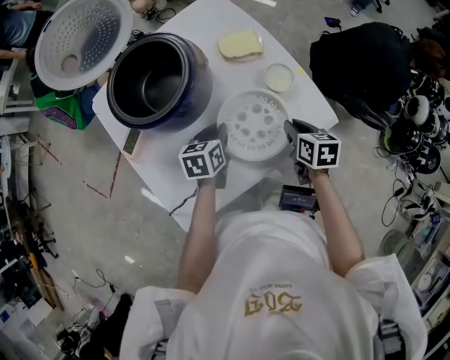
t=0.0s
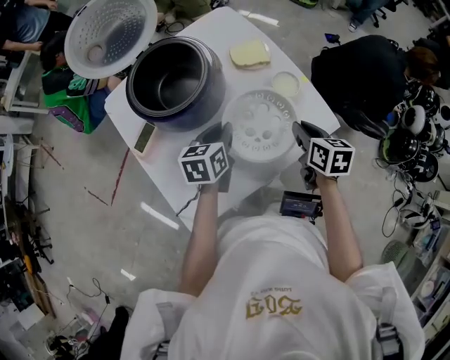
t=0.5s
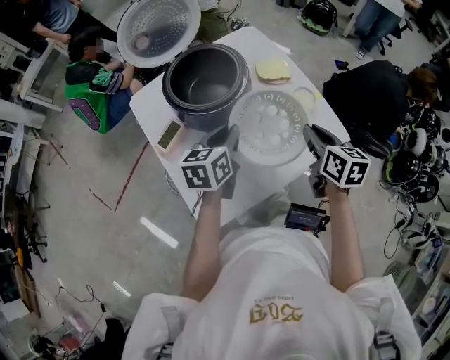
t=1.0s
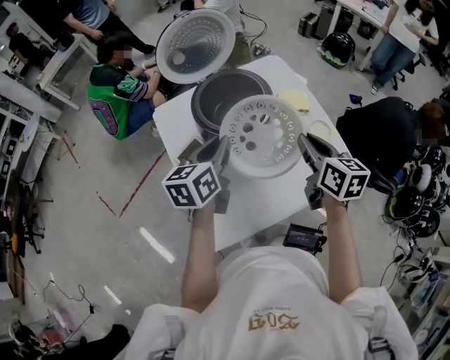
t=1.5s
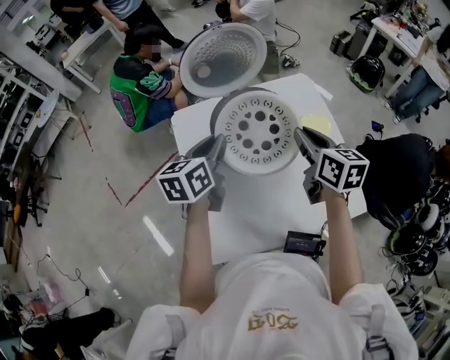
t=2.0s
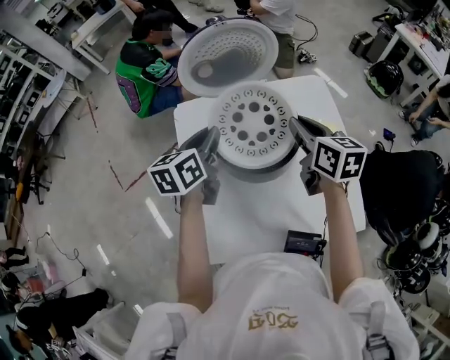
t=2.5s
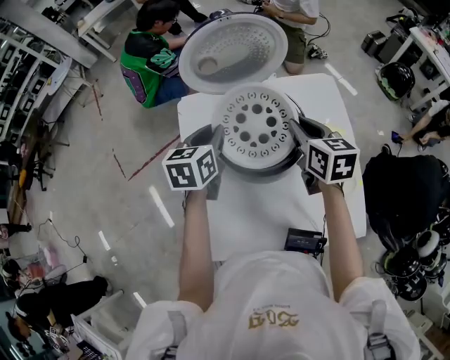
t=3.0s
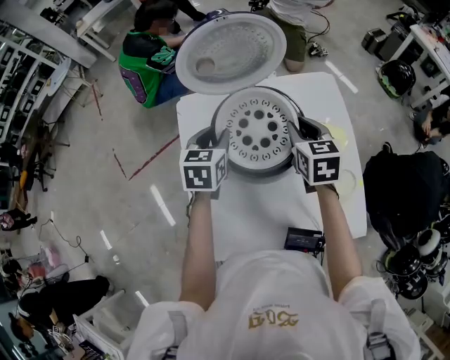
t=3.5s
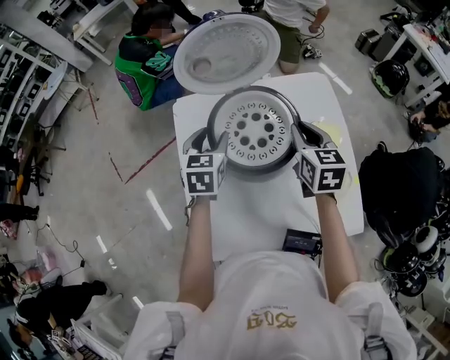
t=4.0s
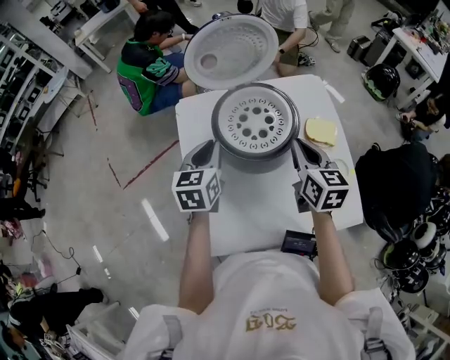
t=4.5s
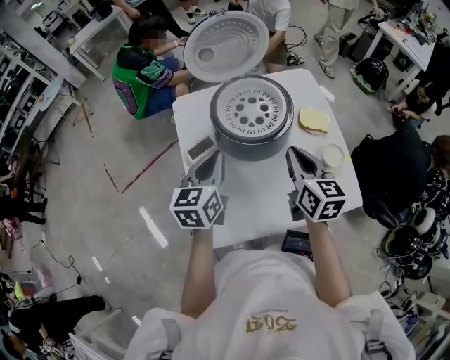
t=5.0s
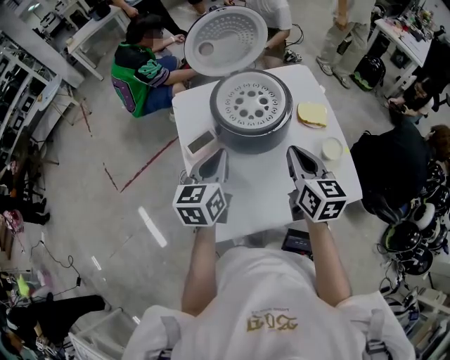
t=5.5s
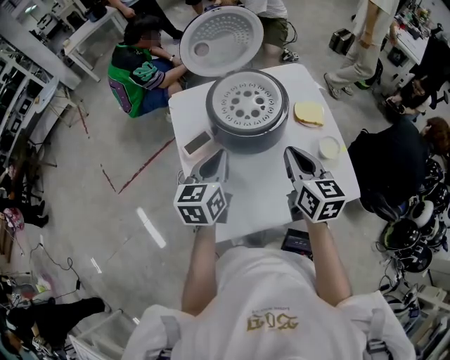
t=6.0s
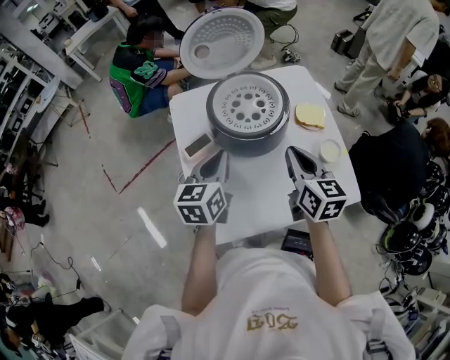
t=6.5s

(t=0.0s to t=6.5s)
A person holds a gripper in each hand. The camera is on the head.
t=0.0s - t=2.0s: The left gripper is displaced upward and to the left by about 30 cm, and rotates approximately 30 degrees. Meanwhile the right gripper heads upward, to the left and forward, covering about 35 cm, and changes its angle by about 30 degrees.
t=2.0s - t=4.5s: The right gripper reaches roughly 10 cm forward, then returns; the left gripper is displaced downward by approximately 5 cm, reaches roughly 5 cm forward, then returns, turns by approximately 20 degrees, and opens and closes again.
t=4.5s - t=6.5s: The grippers both shift backward by roughly 10 cm.

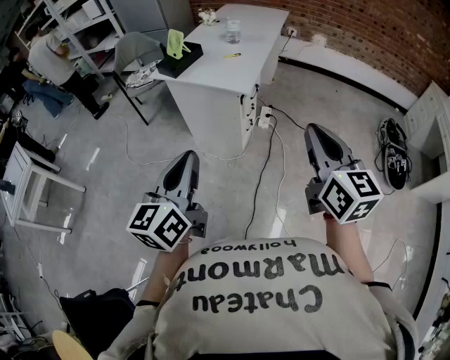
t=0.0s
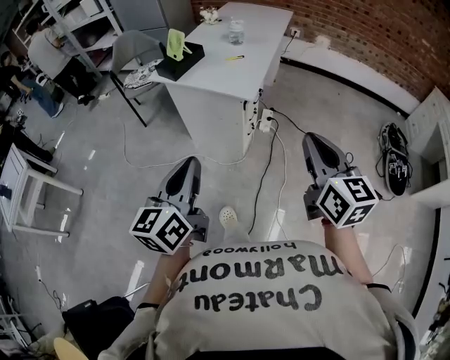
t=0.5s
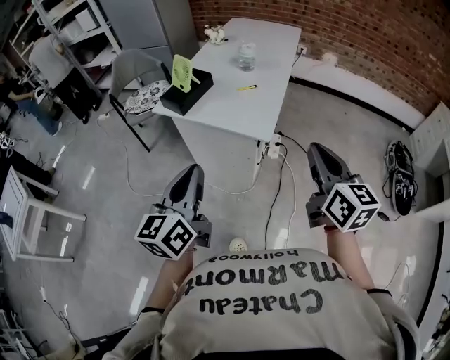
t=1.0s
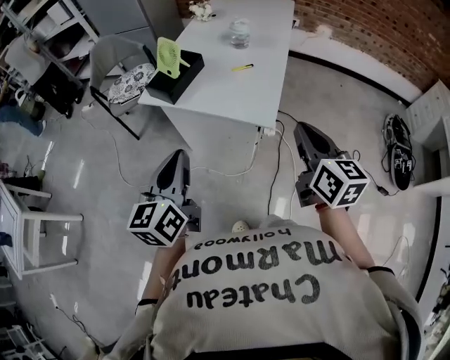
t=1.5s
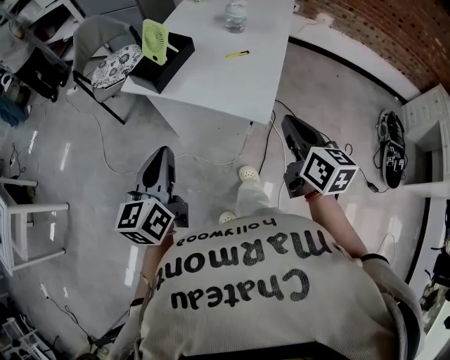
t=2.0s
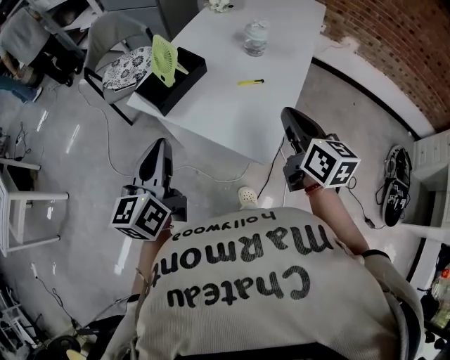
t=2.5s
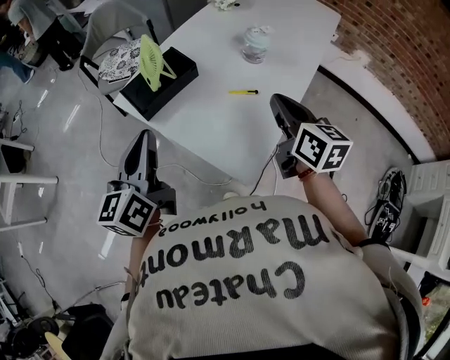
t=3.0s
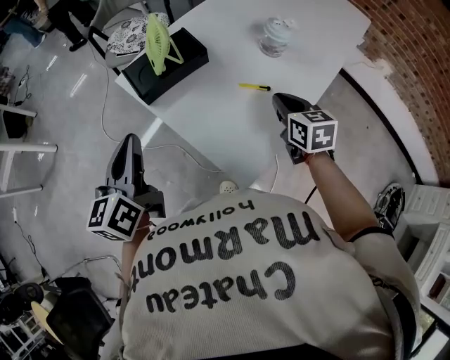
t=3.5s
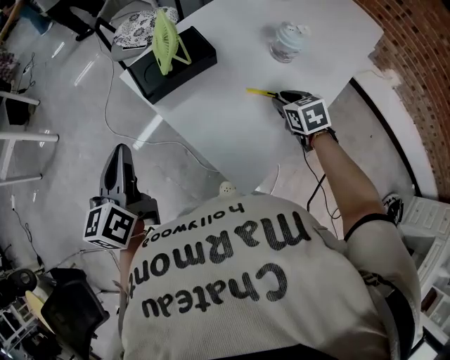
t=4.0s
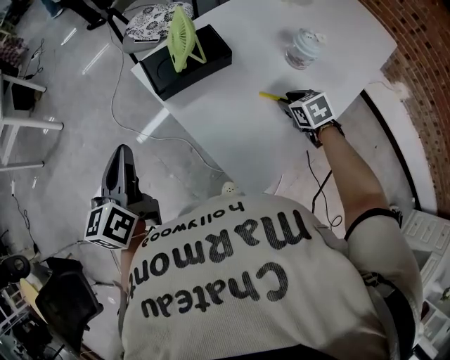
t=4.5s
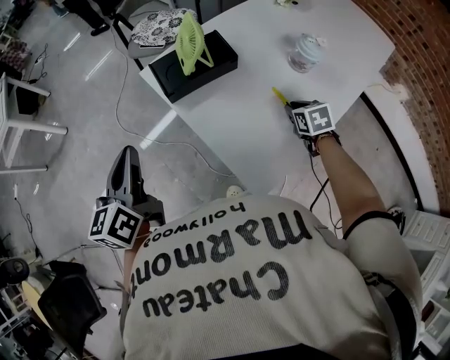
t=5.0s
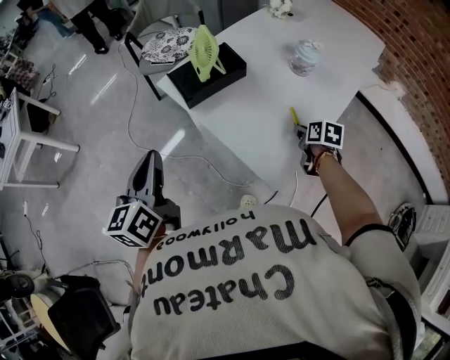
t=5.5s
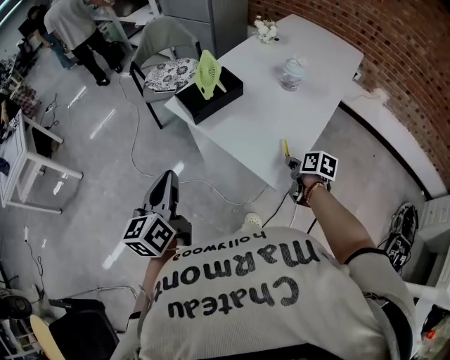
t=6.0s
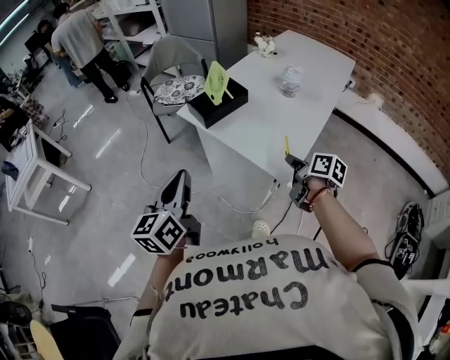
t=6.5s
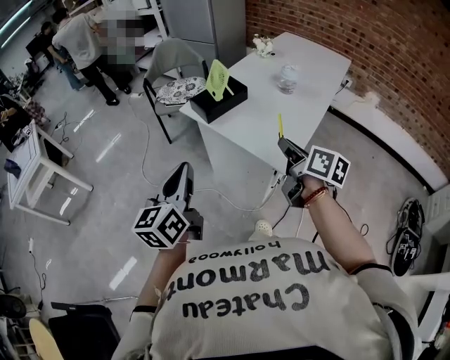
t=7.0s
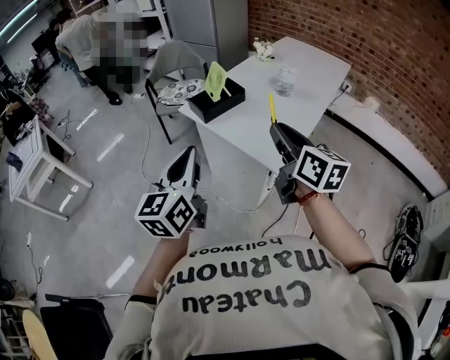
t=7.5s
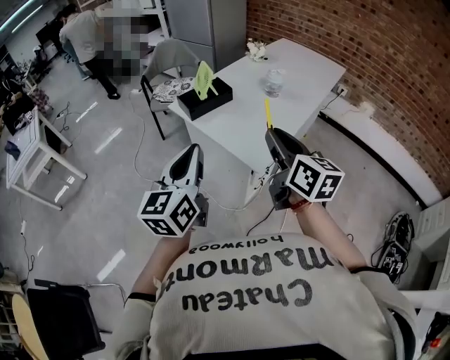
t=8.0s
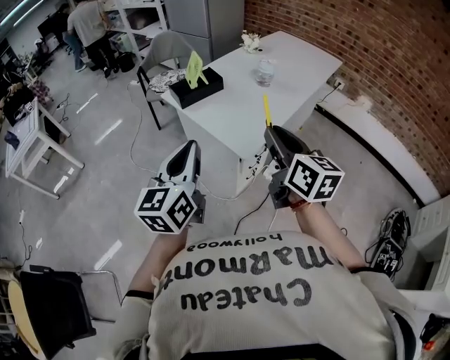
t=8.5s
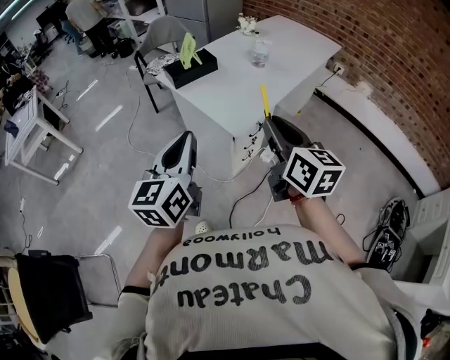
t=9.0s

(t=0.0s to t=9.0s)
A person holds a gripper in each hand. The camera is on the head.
t=0.0s - t=2.0s: The two grippers go approximately 35 cm forward. The right gripper turns by some 20 degrees.
t=2.0s - t=4.5s: The right gripper ends up about 40 cm from where it was, points its fingers roughly 40 degrees further downward, and opens up; the left gripper moves about 15 cm, and rotates approximately 40 degrees.
t=4.5s - t=7.0s: The left gripper shifts roughly 20 cm backward and upward, and rotates about 30 degrees. Meanwhile the right gripper travels backward, upward and to the left by approximately 40 cm, and tips its fingers upward by roughly 40 degrees.
t=7.0s - t=9.0s: The left gripper moves to the right and backward, roughly 25 cm. Meanwhile the right gripper goes about 20 cm backward, to the right and upward, and rotates about 30 degrees.

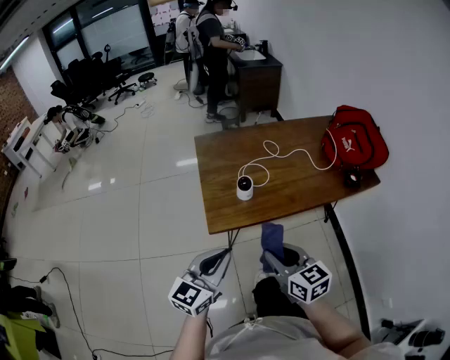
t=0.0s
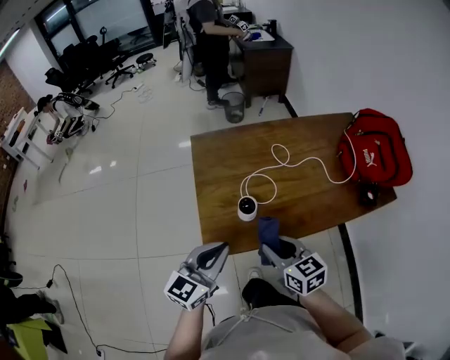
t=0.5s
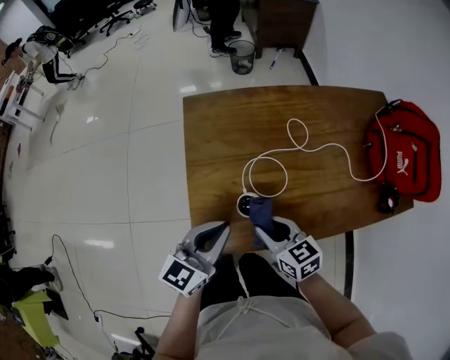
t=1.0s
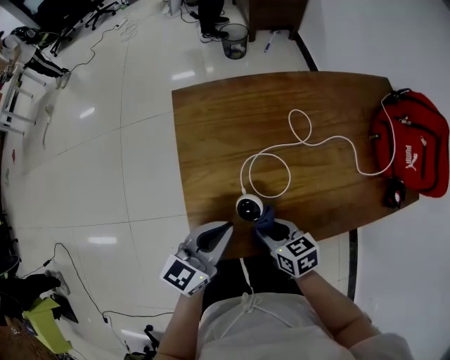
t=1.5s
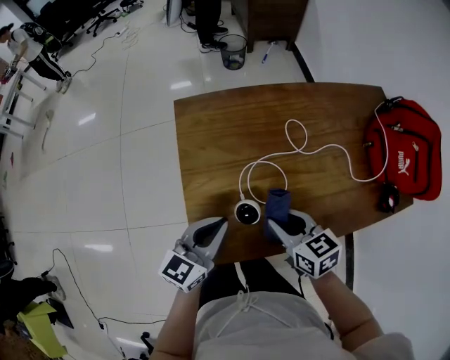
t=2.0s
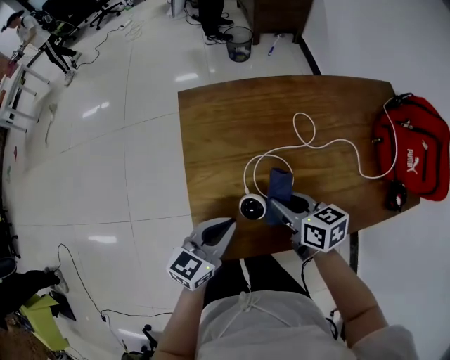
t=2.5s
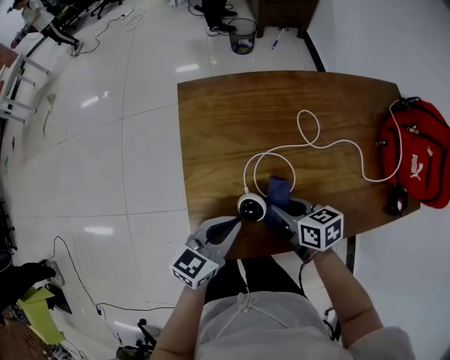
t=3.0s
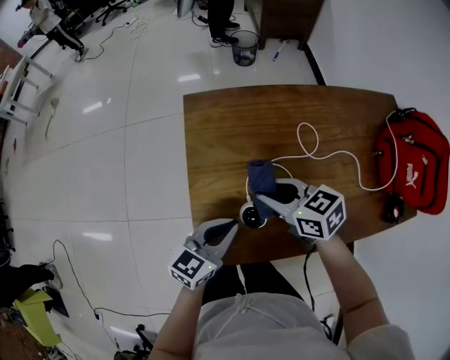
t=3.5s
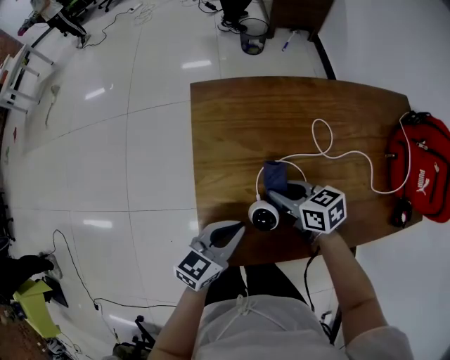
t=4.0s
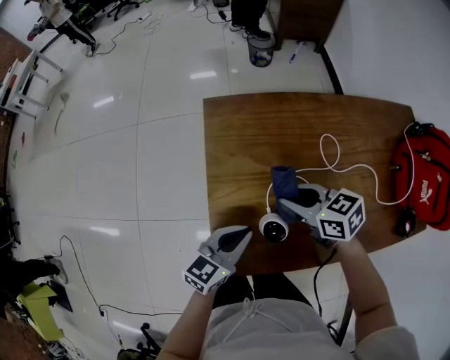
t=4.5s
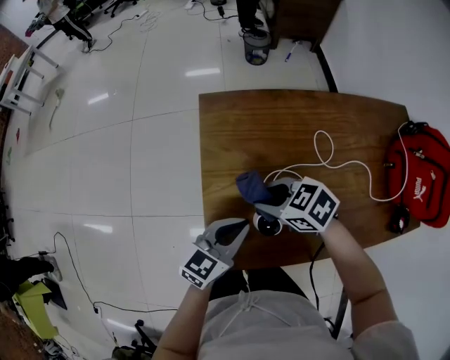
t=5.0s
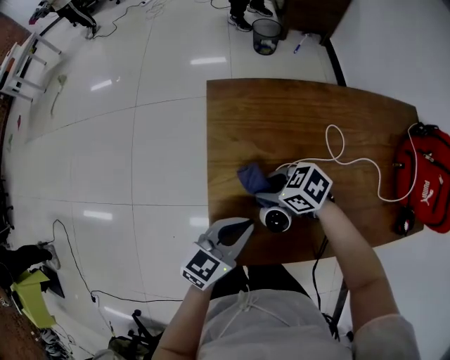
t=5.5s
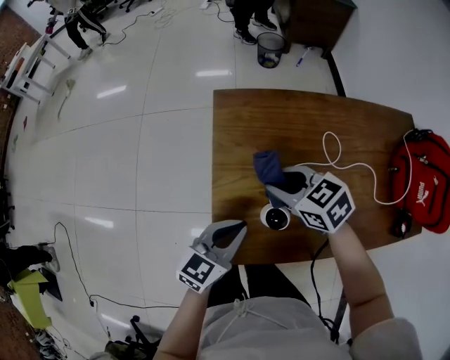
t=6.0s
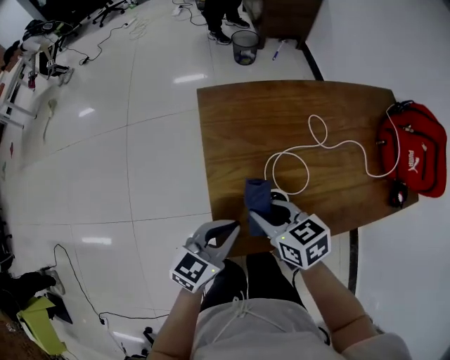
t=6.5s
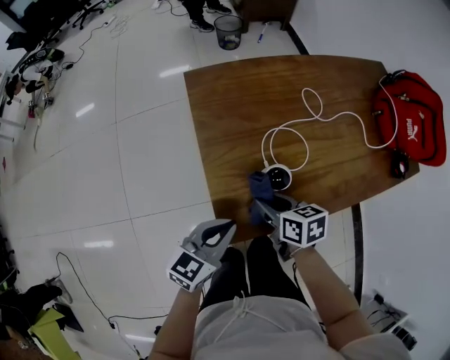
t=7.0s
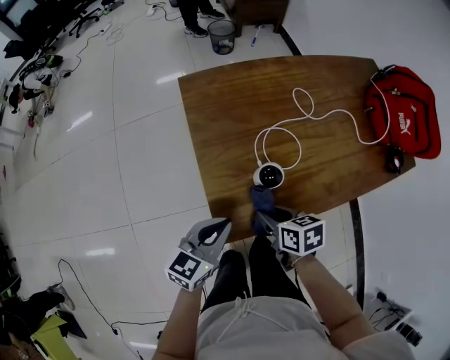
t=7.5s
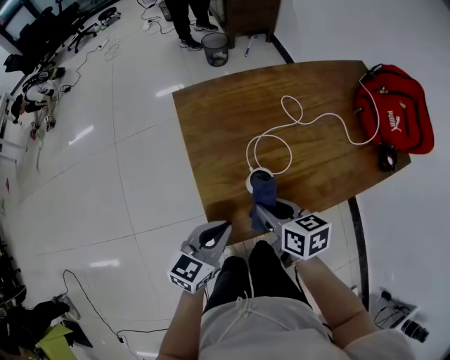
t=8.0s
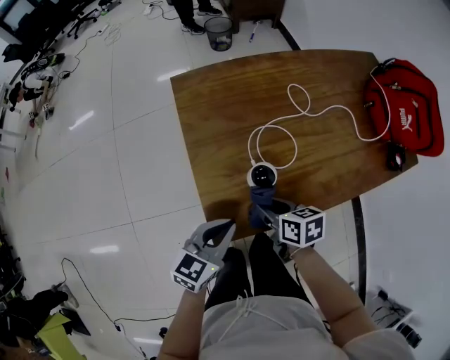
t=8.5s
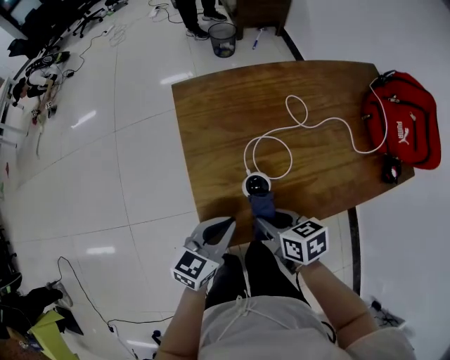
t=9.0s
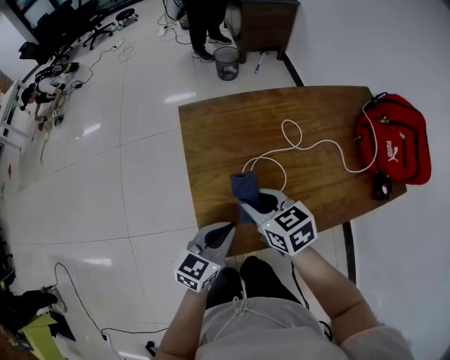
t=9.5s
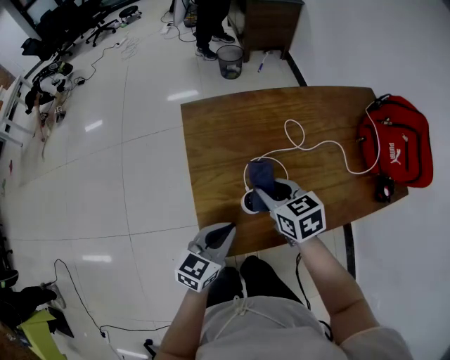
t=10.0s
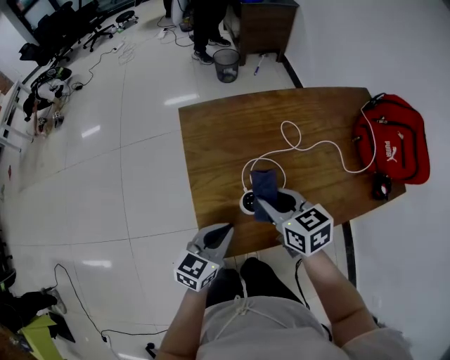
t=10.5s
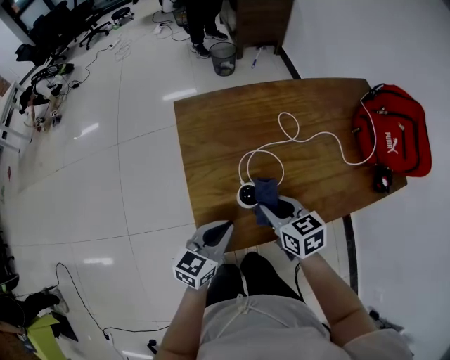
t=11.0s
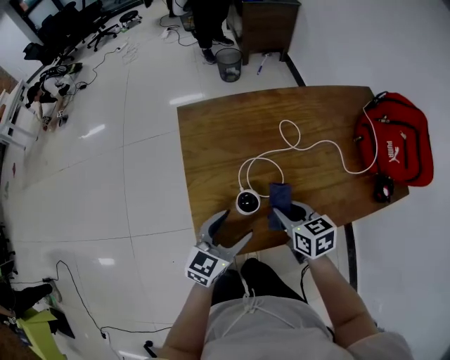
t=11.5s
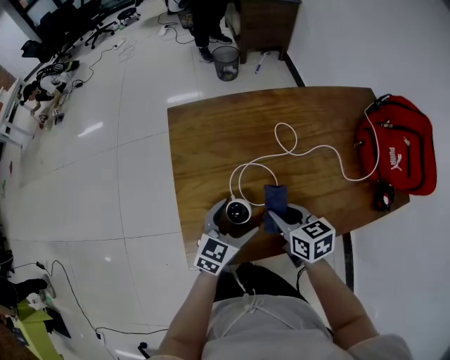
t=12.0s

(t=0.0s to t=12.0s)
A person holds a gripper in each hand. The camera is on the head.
t=0.0s - t=2.0s: Both grippers travel together forward, some 30 cm.
t=2.0s - t=4.0s: The right gripper goes up and down, approximately 10 cm each way, reversing 2 times; the left gripper is displaced downward by some 5 cm.
t=4.0s - t=6.0s: The right gripper goes up and down, roughly 10 cm each way, reversing 2 times, and rotates some 20 degrees; the left gripper changes place by approximately 5 cm.
t=6.0s - t=8.0s: The left gripper moves backward, roughly 10 cm. The right gripper goes about 15 cm backward, and turns by some 50 degrees.
t=8.0s - t=10.0s: The right gripper shifts about 10 cm forward, reaches about 10 cm downward, then returns, and turns by roughly 20 degrees. The left gripper changes place by roughly 5 cm.
t=10.0s - t=12.0s: The left gripper goes some 15 cm to the right, forward and downward, and opens its fingers, while the right gripper goes approximately 10 cm to the right and downward.
